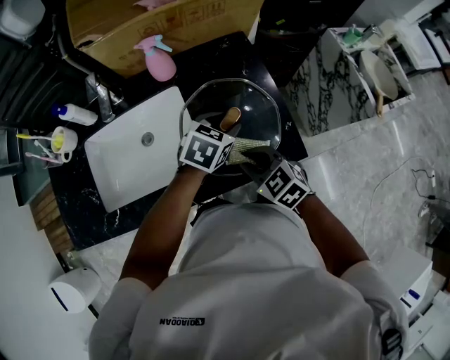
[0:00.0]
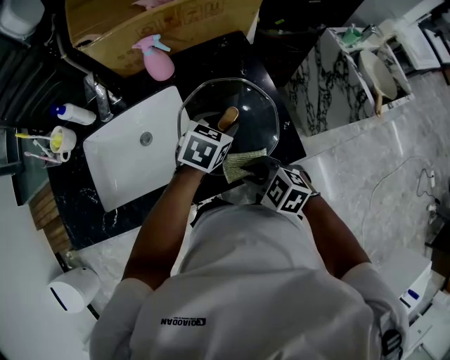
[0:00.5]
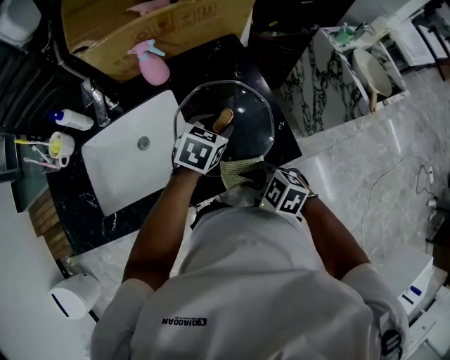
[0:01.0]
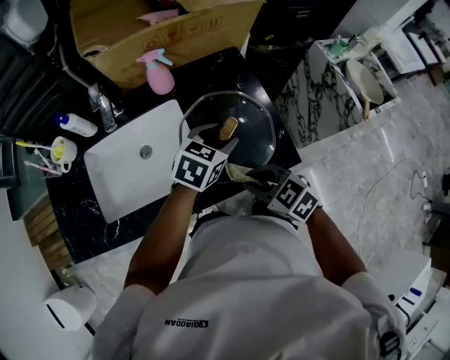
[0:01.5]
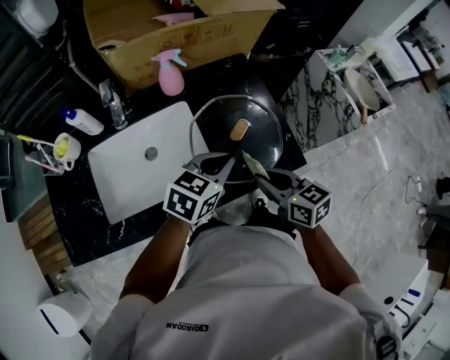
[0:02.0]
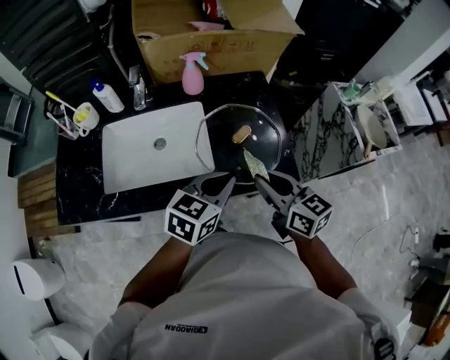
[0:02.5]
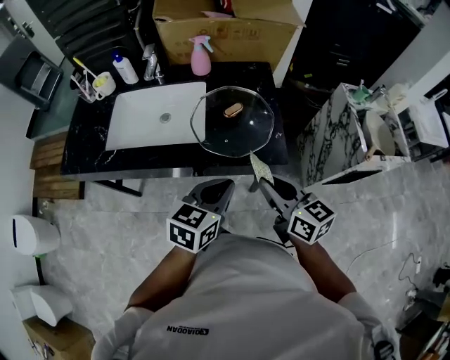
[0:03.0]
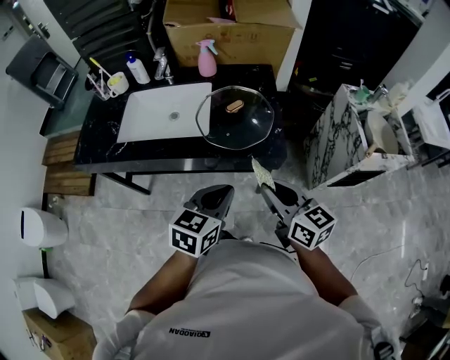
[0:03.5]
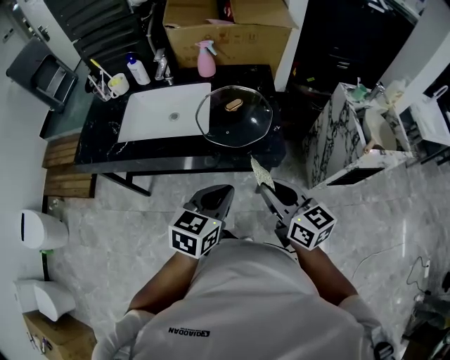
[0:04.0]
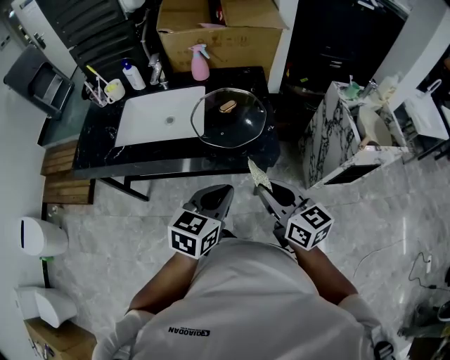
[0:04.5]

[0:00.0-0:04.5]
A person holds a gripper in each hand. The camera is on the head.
0:00.0 to 0:02.0: The left gripper goes approximately 15 cm backward, upward and to the left, and closes. Meanwhile the right gripper travels upward by about 5 cm, and rotates roughly 40 degrees.
0:02.0 to 0:04.5: The right gripper heads backward and to the right, covering approximately 25 cm, and turns by some 20 degrees. Meanwhile the left gripper is displaced backward by some 30 cm, and changes its angle by approximately 30 degrees.

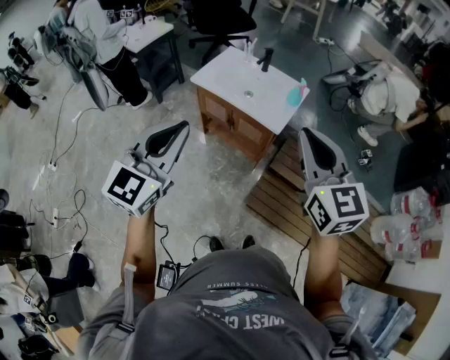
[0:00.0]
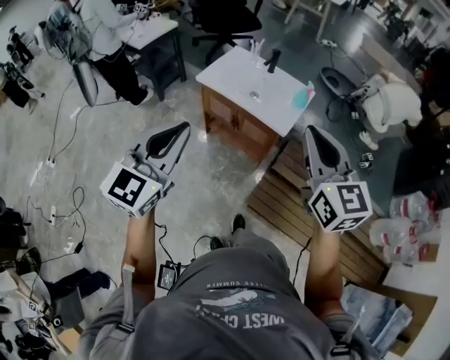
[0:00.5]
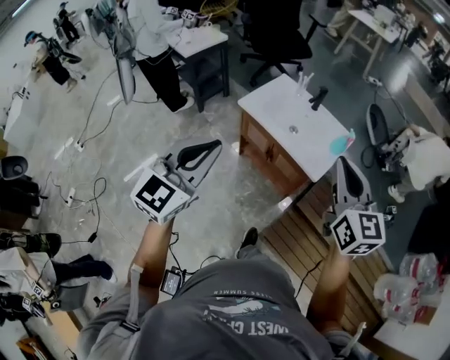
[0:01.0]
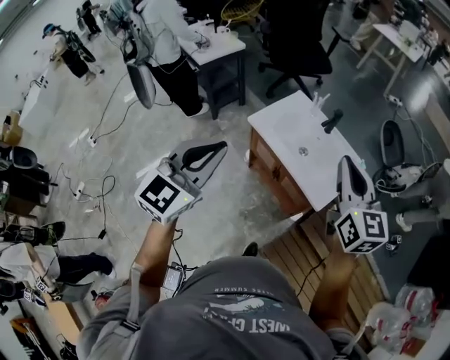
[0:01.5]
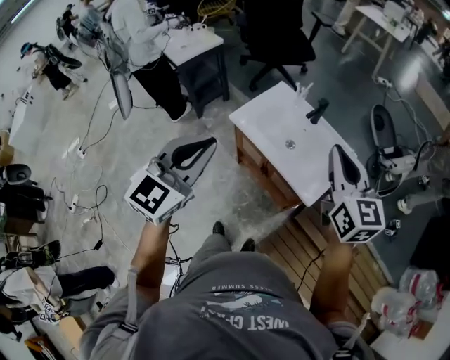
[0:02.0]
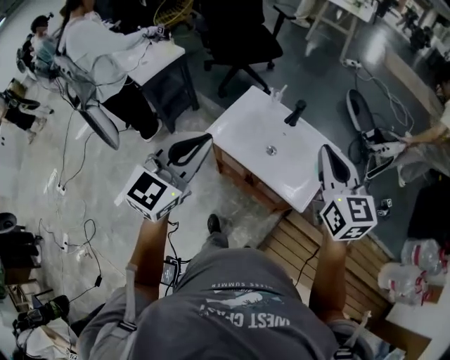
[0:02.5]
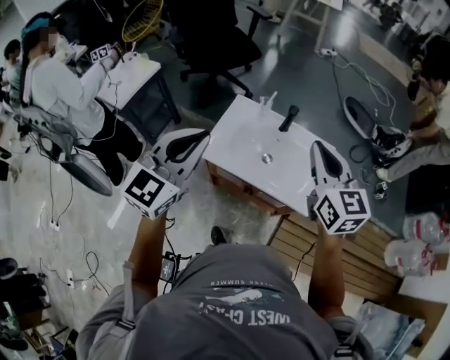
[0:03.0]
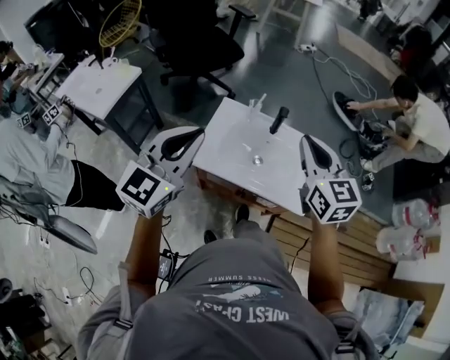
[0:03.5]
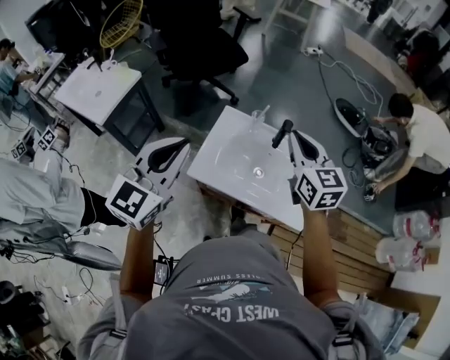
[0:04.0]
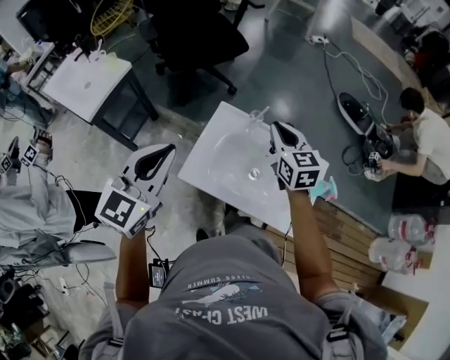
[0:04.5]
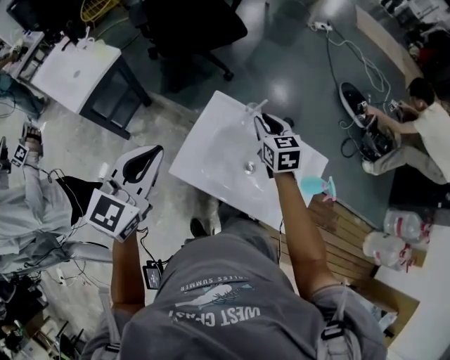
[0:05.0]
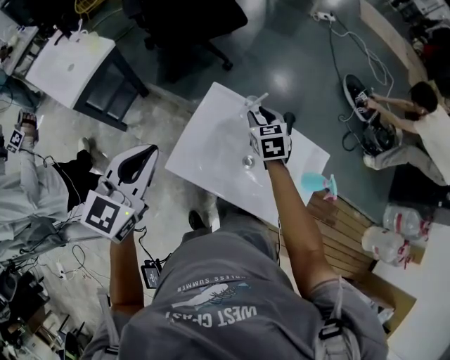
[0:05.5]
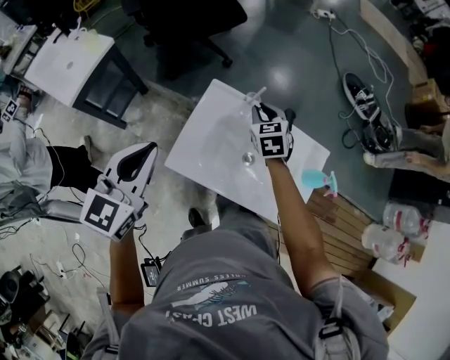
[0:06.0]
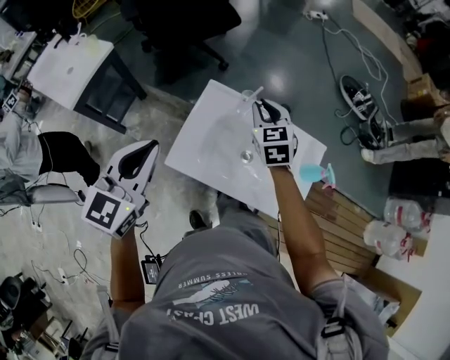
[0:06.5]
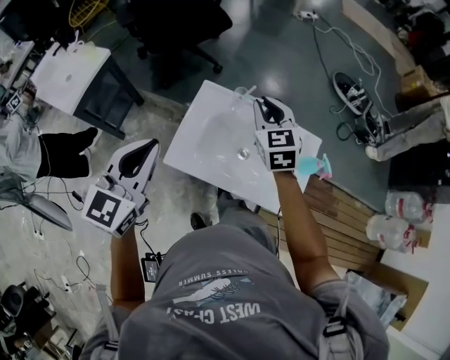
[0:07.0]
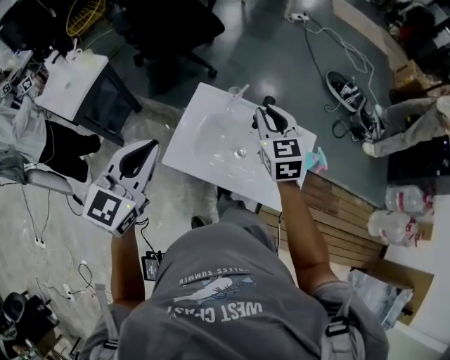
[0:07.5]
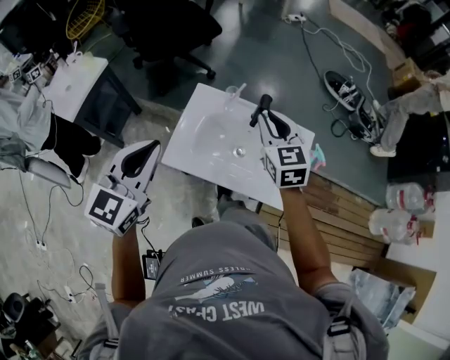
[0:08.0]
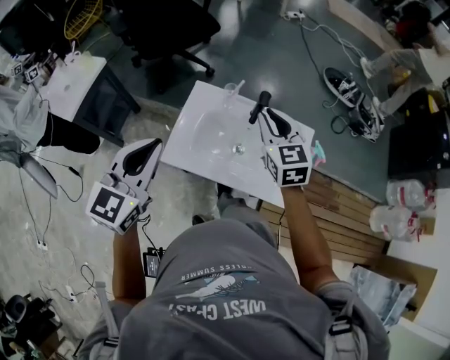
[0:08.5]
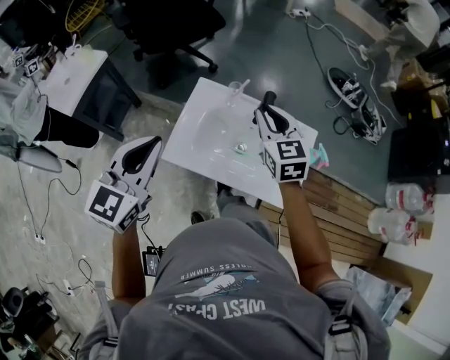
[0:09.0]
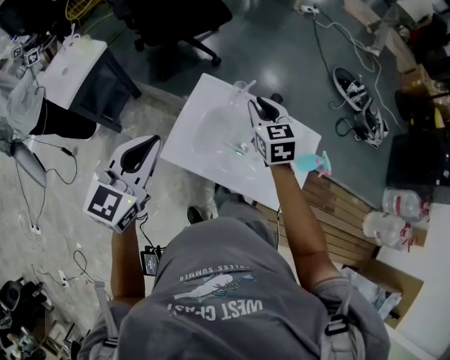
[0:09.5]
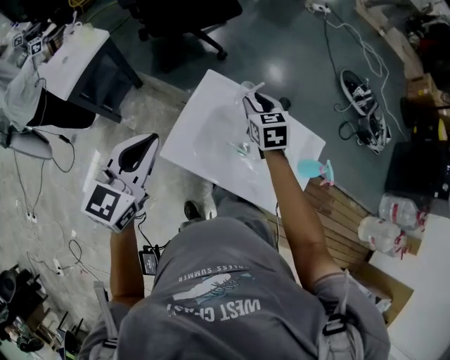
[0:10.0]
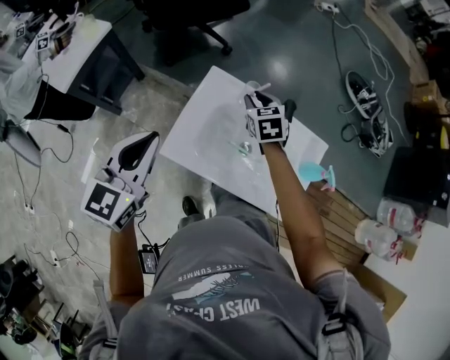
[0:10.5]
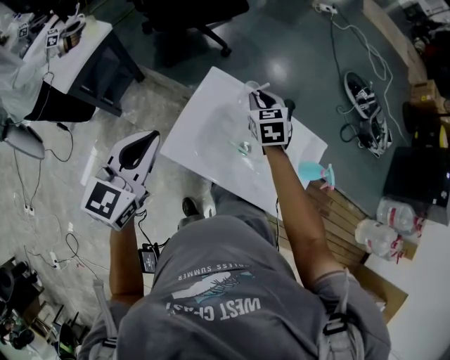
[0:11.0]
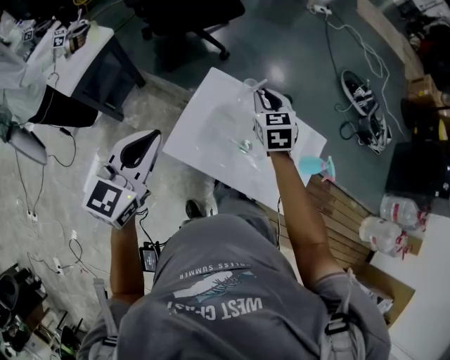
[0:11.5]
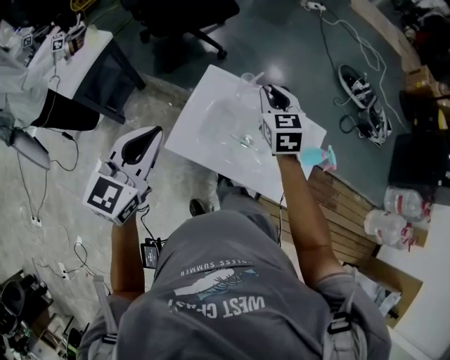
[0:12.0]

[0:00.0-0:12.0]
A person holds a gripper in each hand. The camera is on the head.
0:00.0 to 0:02.0: The two grippers go some 30 cm forward.
0:02.0 to 0:04.0: The two grippers go about 30 cm forward and to the left. The left gripper rotates roughly 20 degrees.
0:04.0 to 0:06.0: The right gripper shifts about 30 cm downward and forward, and rotates approximately 30 degrees. Meanwhile the left gripper heads downward and forward, covering approximately 15 cm.
0:06.0 to 0:08.0: The right gripper shifts roughly 20 cm upward, backward and to the right; the left gripper shifts some 5 cm backward.
0:08.0 to 0:10.0: The right gripper shifts approximately 20 cm downward, forward and to the left. Meanwhile the left gripper is displaced forward and downward by roughly 10 cm.
0:10.0 to 0:12.0: The right gripper moves upward, some 10 cm.

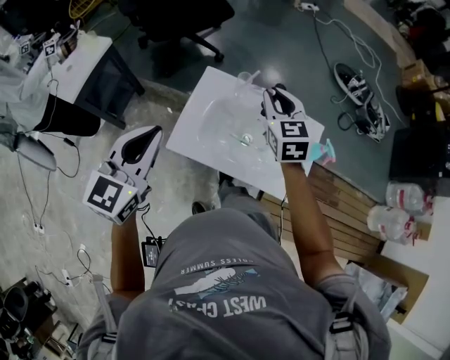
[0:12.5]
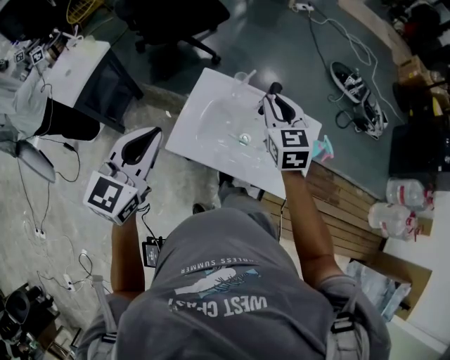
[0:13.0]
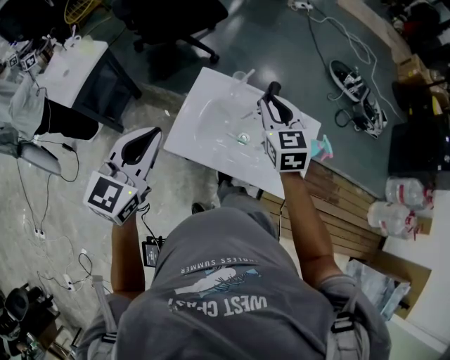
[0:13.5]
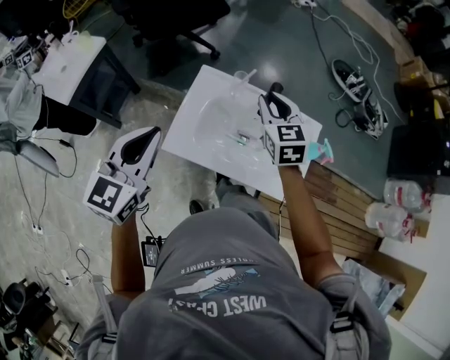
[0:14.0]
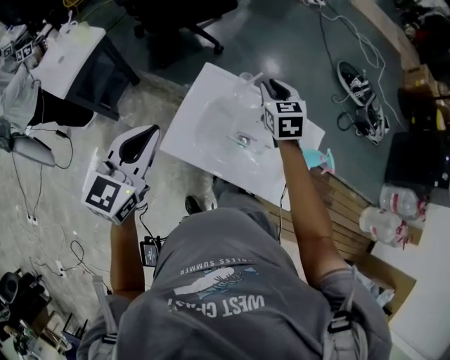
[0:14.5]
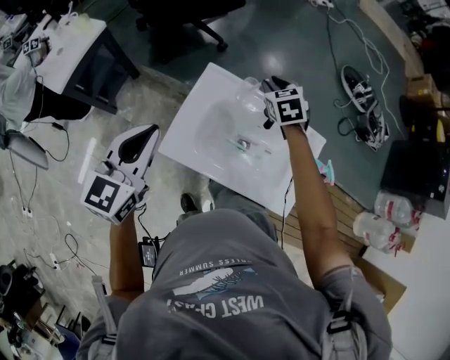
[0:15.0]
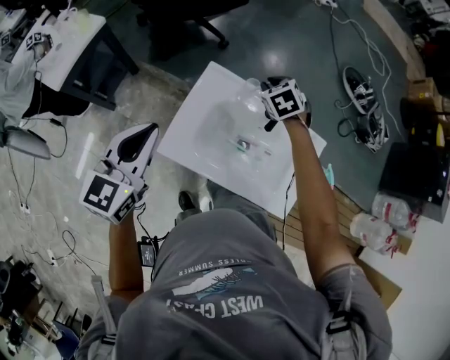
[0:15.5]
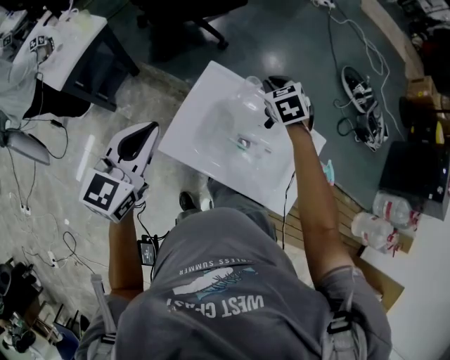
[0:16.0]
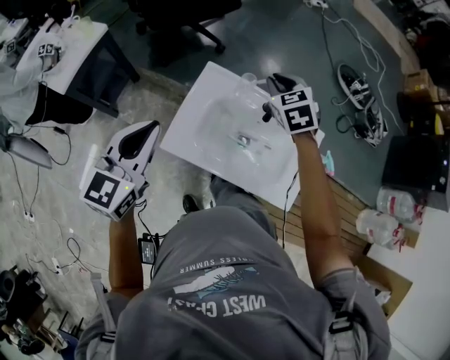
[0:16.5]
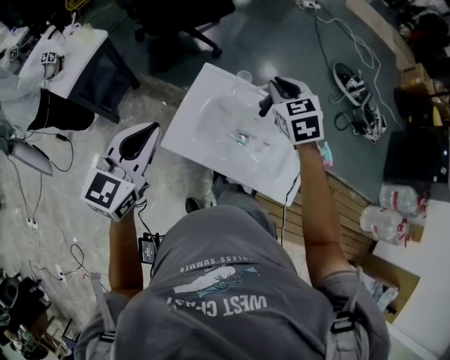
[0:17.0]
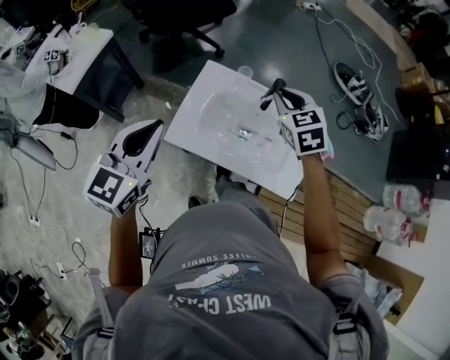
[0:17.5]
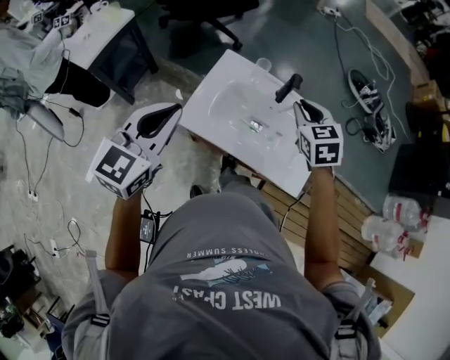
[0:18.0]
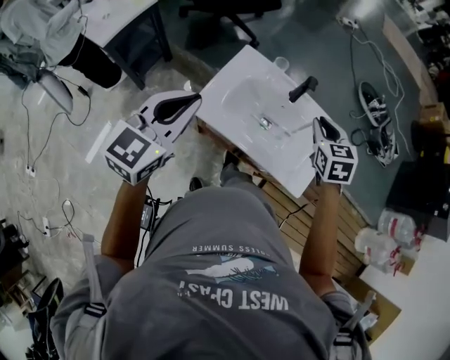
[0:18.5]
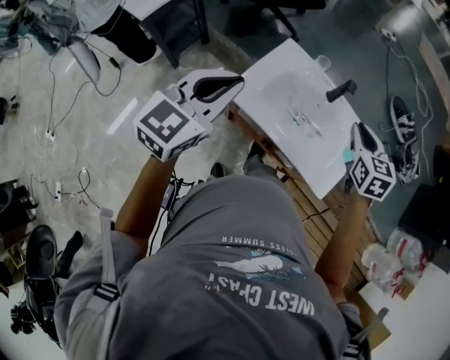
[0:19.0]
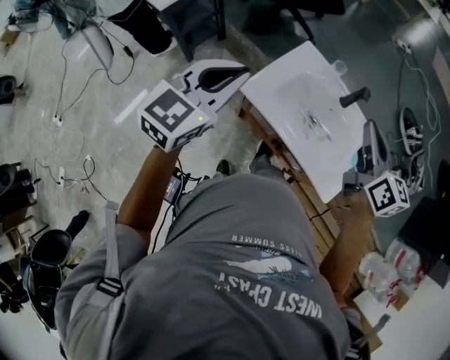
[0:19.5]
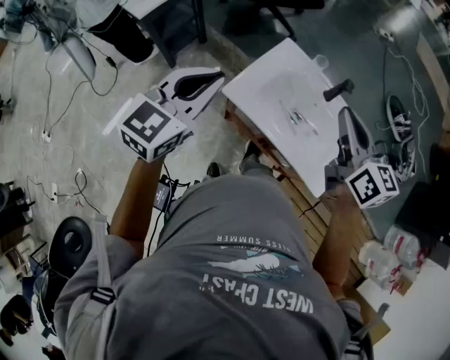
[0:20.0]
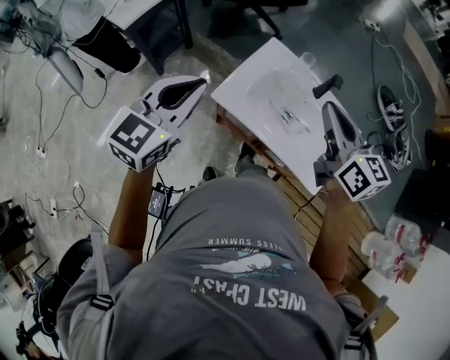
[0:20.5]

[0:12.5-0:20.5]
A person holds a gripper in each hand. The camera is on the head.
0:12.5 to 0:14.5: The left gripper moves approximately 5 cm. The right gripper shifts some 10 cm forward and downward.
0:14.5 to 0:16.5: The right gripper moves roughly 10 cm downward and comes back.
0:16.5 to 0:18.5: The left gripper goes about 10 cm backward. The right gripper shifts roughly 20 cm backward and to the right.
0:18.5 to 0:20.5: The right gripper goes about 15 cm to the left and upward, and swivels roughly 40 degrees; the left gripper heads to the left, covering approximately 5 cm.

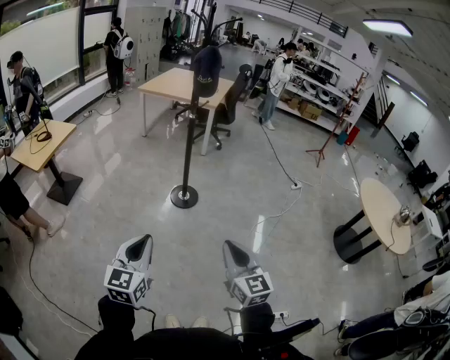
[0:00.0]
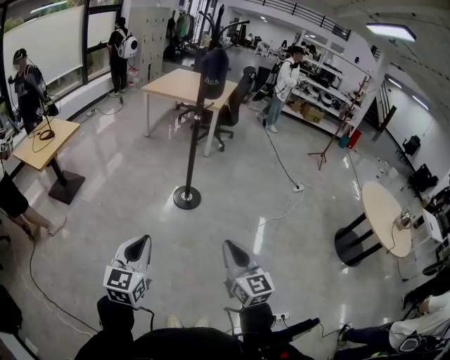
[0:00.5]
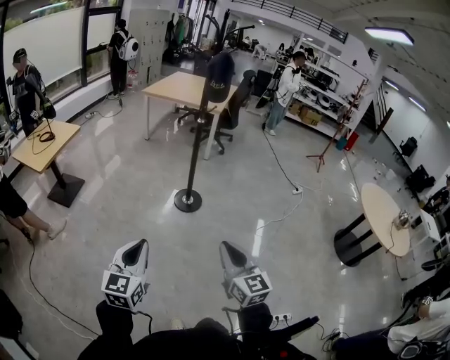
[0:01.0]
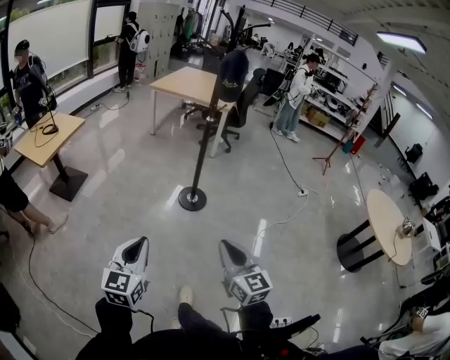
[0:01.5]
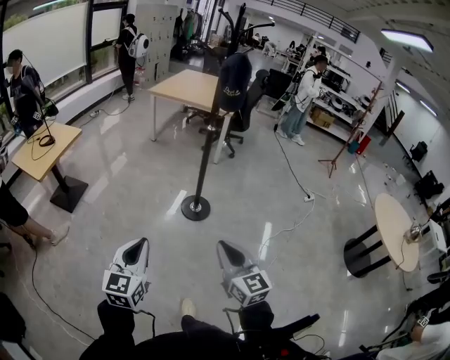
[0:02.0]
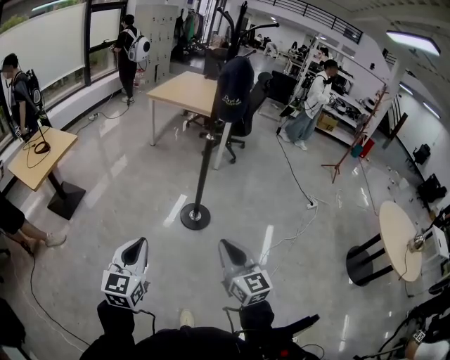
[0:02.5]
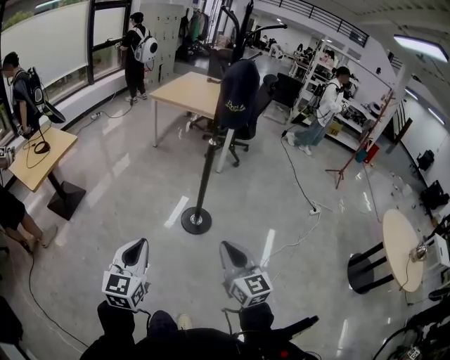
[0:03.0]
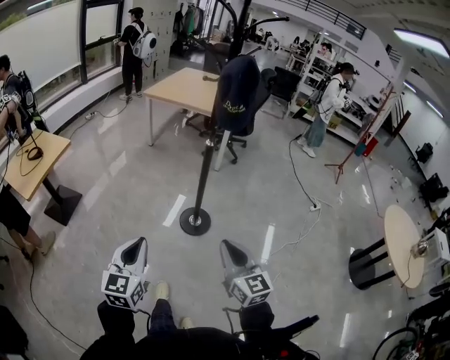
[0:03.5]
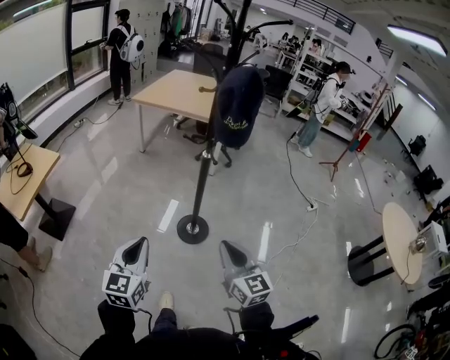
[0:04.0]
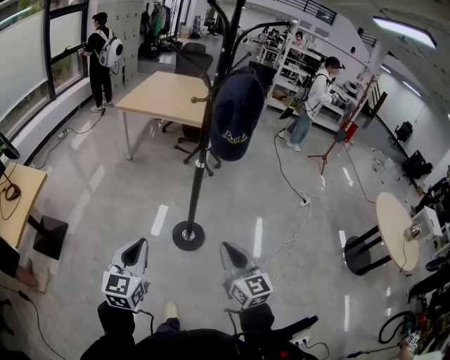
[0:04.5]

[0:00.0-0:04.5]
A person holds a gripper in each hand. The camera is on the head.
0:00.0 to 0:02.0: The grippers both shift forward and to the left by some 15 cm.
0:02.0 to 0:04.5: Both grippers travel together forward, about 30 cm.
